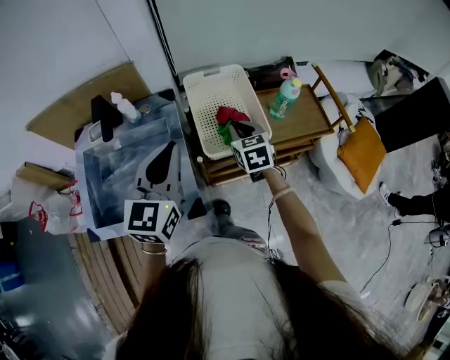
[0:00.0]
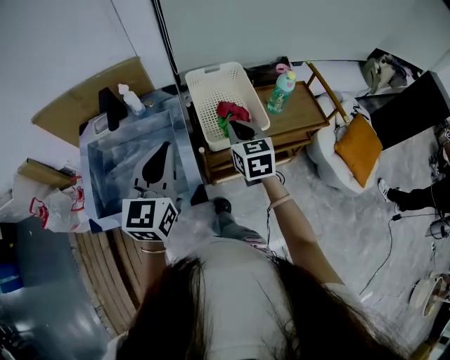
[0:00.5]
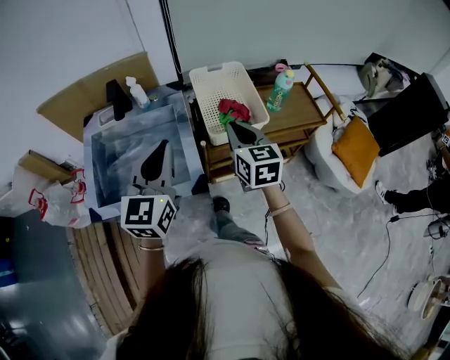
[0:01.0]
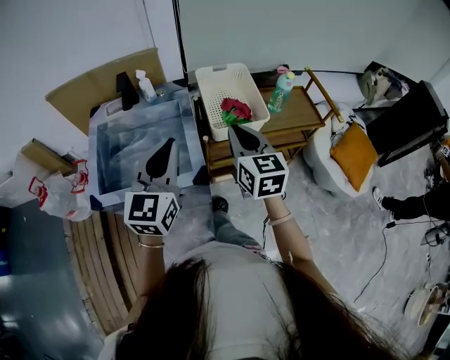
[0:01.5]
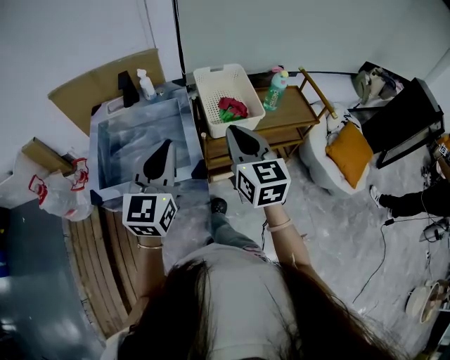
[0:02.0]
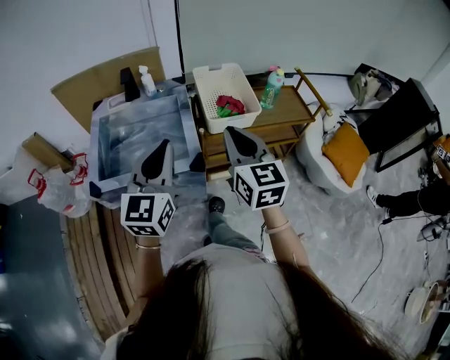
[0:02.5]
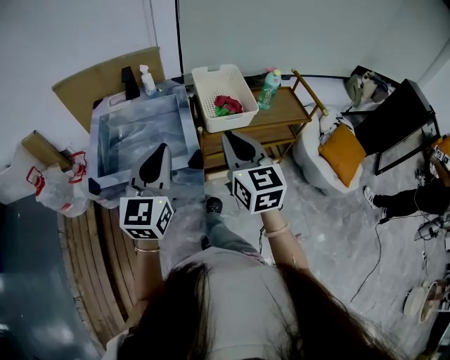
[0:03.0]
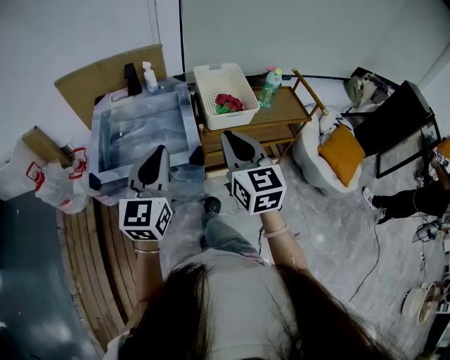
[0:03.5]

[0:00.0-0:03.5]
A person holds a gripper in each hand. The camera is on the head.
0:00.0 to 0:02.0: The left gripper travels backward by some 20 cm; the right gripper heads backward and upward, covering roughly 30 cm, and turns by some 30 degrees.
0:02.0 to 0:03.5: The grippers both shift backward by some 10 cm.

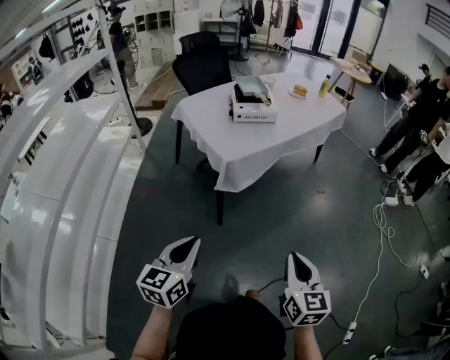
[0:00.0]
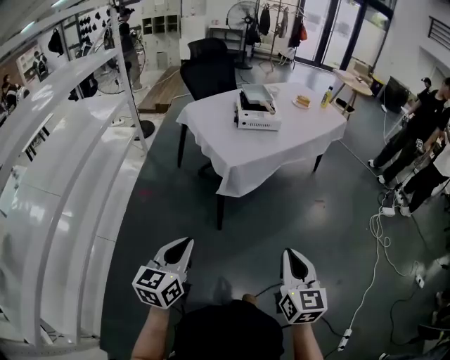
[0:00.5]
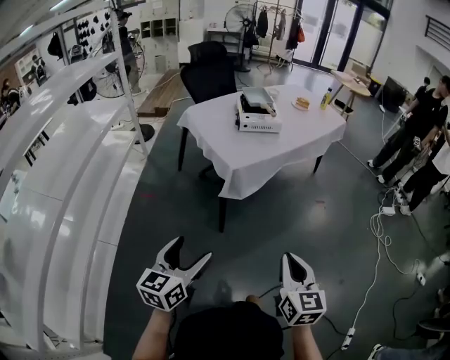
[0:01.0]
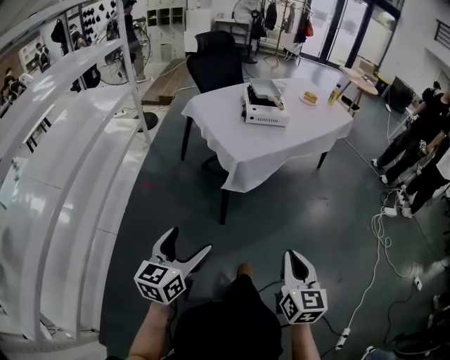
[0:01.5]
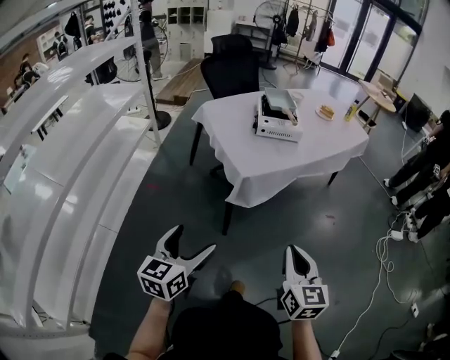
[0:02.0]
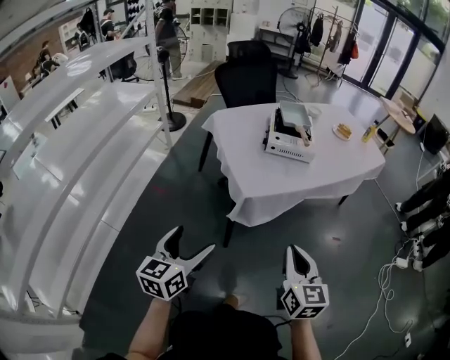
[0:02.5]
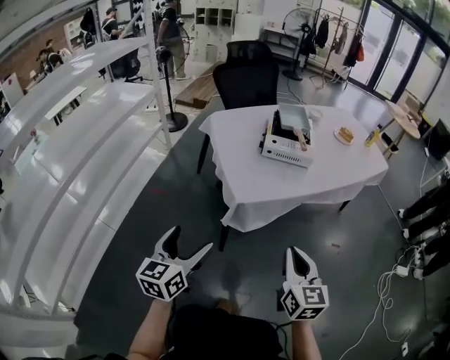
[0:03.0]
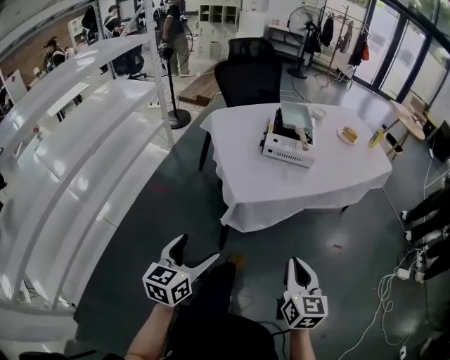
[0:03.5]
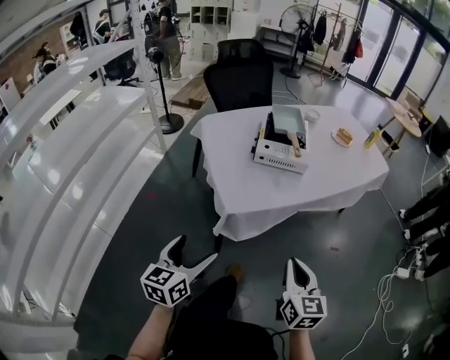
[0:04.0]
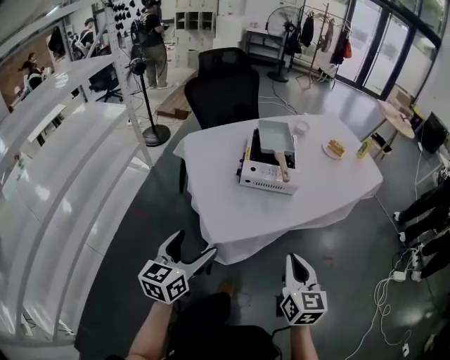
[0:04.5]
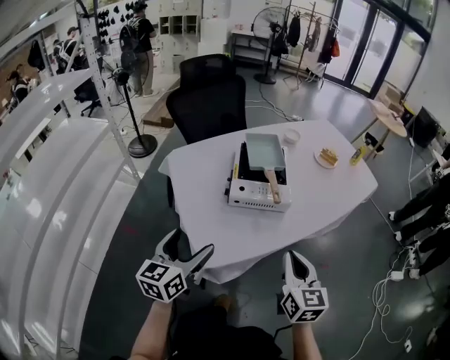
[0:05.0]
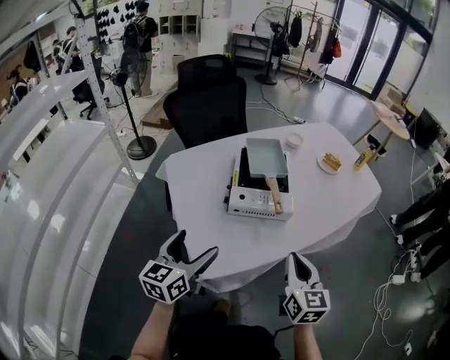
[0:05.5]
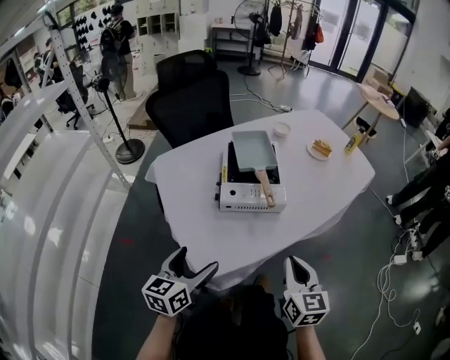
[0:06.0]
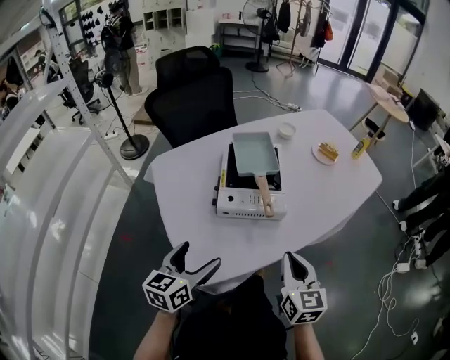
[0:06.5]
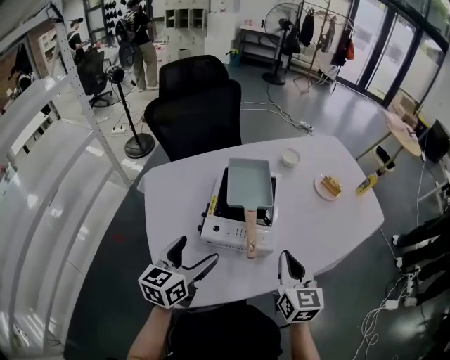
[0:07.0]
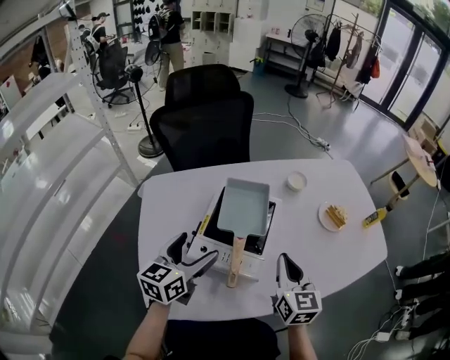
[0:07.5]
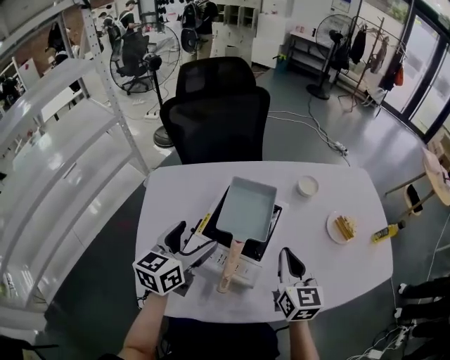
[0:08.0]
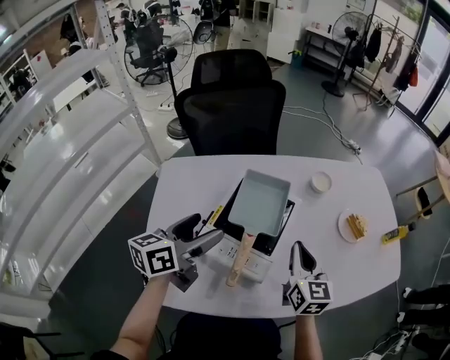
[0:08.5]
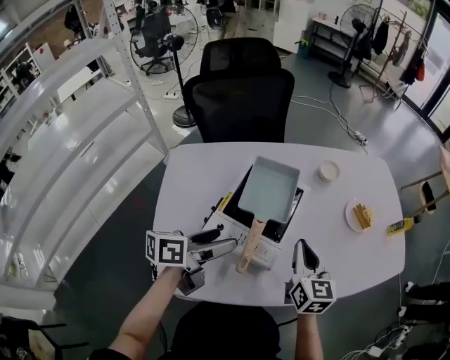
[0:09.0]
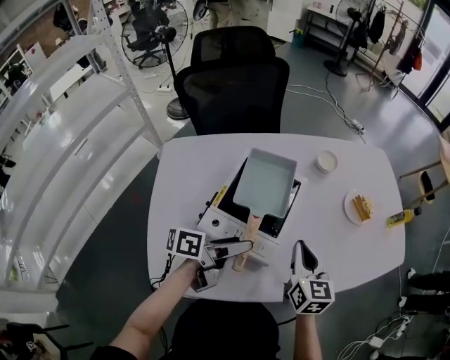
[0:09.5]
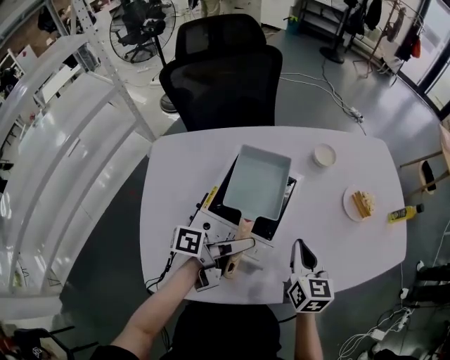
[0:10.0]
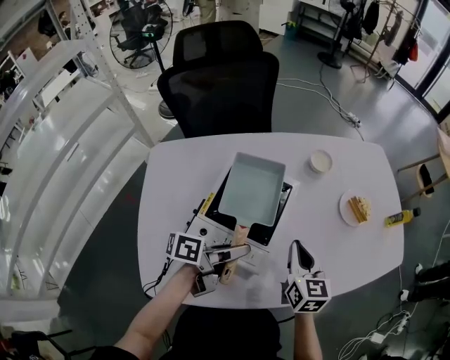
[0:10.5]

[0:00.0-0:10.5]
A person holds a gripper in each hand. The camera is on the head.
0:00.0 to 0:02.0: The right gripper is displaced forward and to the left by approximately 10 cm, while the left gripper shifts approximately 5 cm forward, and opens up.
0:02.0 to 0:04.0: Both grippers move forward and to the right, approximately 20 cm.
0:04.0 to 0:06.5: Both grippers travel together forward, approximately 30 cm.
0:06.5 to 0:08.5: The two grippers go approximately 25 cm forward. The right gripper rotates roughly 20 degrees. The left gripper swivels some 20 degrees.
0:08.5 to 0:10.5: The right gripper shifts some 5 cm downward. The left gripper goes roughly 15 cm to the right and downward, rotates about 50 degrees, and closes its fingers.

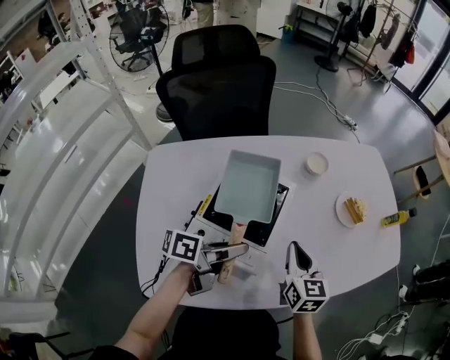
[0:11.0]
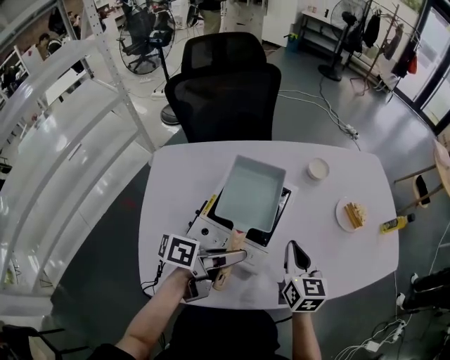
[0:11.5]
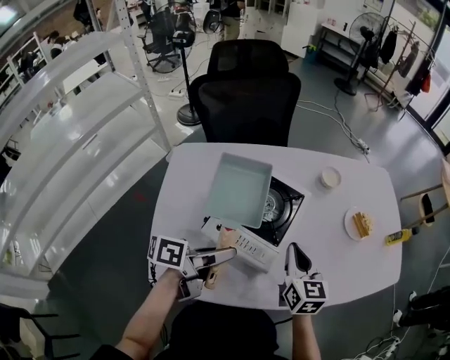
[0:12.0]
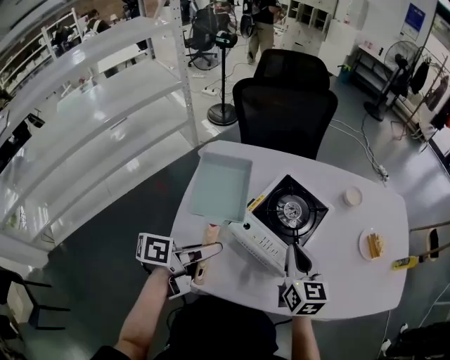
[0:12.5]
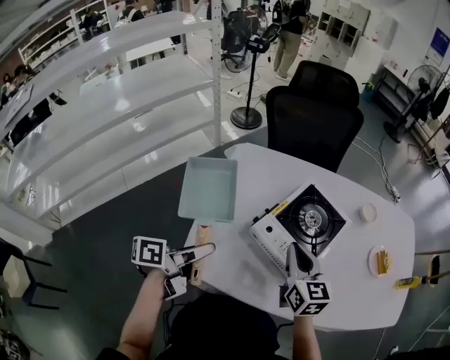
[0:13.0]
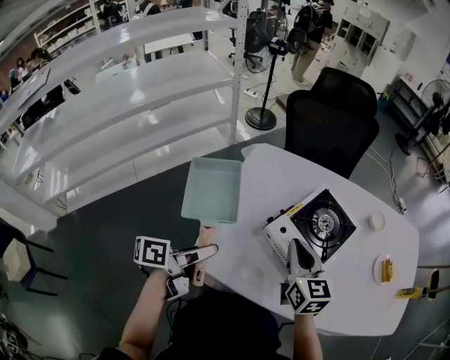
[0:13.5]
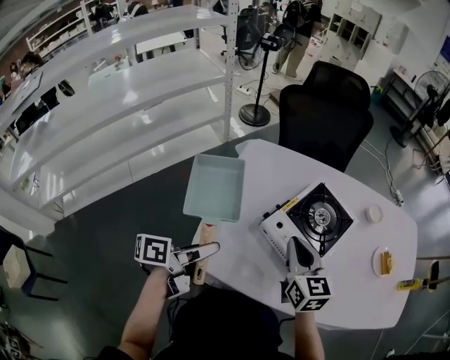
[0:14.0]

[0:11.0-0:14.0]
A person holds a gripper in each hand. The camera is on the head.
0:11.0 to 0:12.5: The right gripper moves to the left and backward, some 15 cm, while the left gripper goes about 20 cm backward and to the left, and swivels approximately 30 degrees.
0:12.5 to 0:14.0: The left gripper heads to the left and backward, covering some 10 cm. Meanwhile the right gripper is displaced to the left by roughly 10 cm.

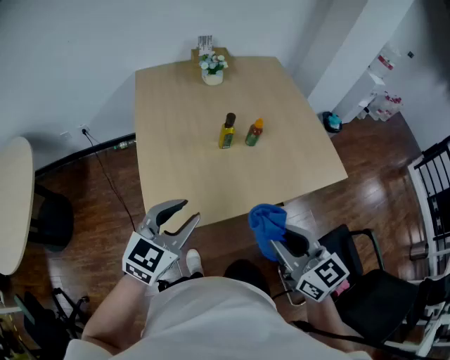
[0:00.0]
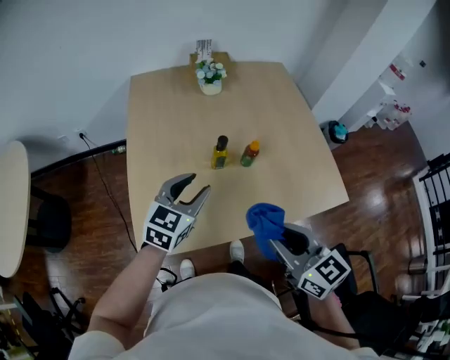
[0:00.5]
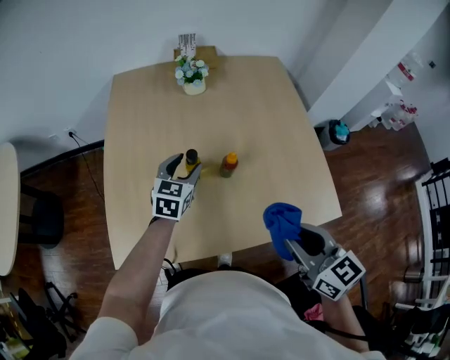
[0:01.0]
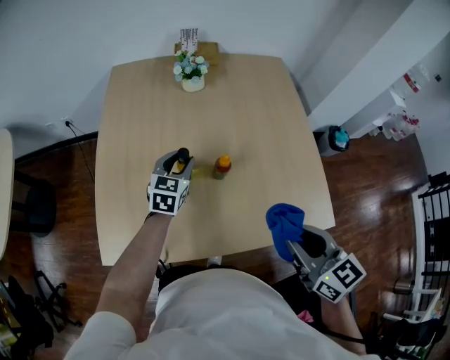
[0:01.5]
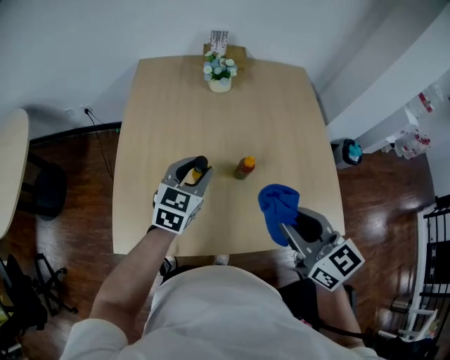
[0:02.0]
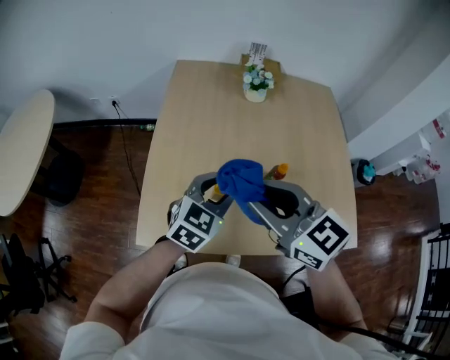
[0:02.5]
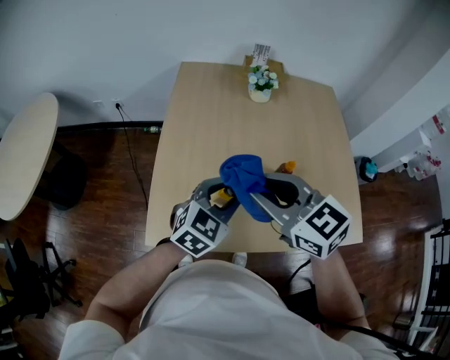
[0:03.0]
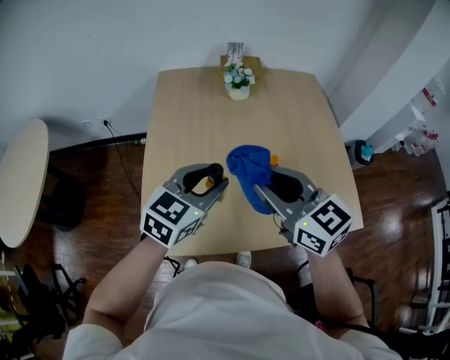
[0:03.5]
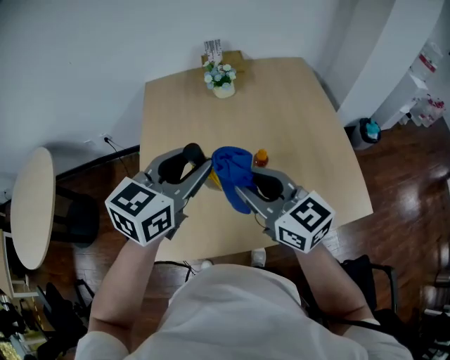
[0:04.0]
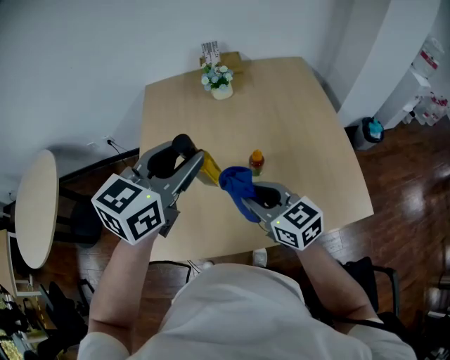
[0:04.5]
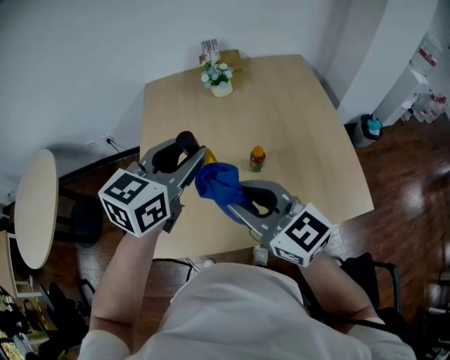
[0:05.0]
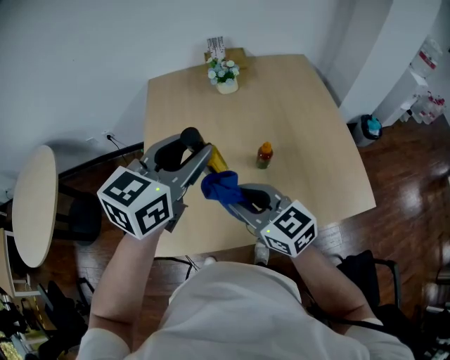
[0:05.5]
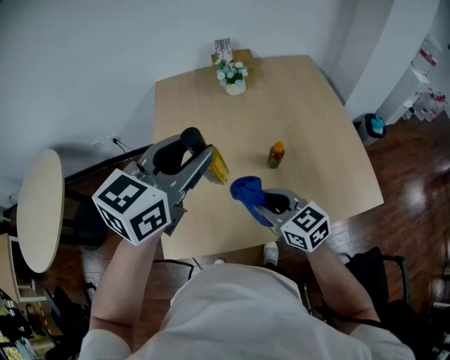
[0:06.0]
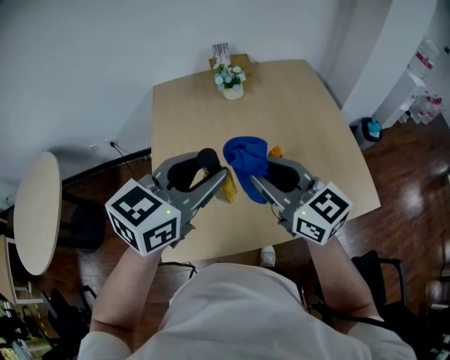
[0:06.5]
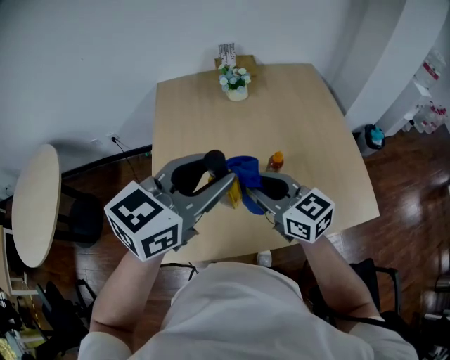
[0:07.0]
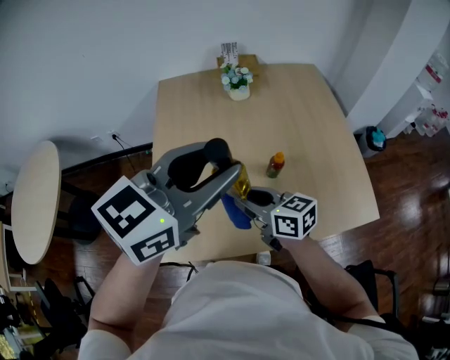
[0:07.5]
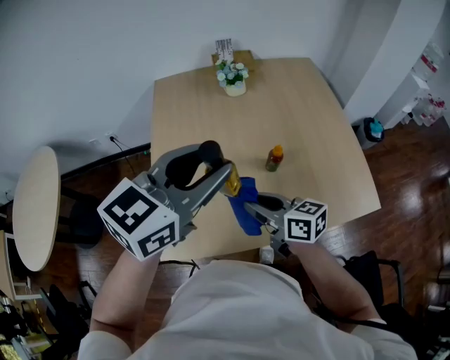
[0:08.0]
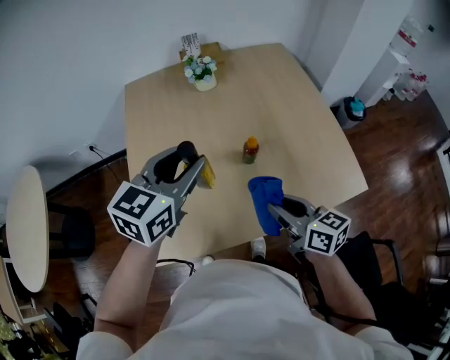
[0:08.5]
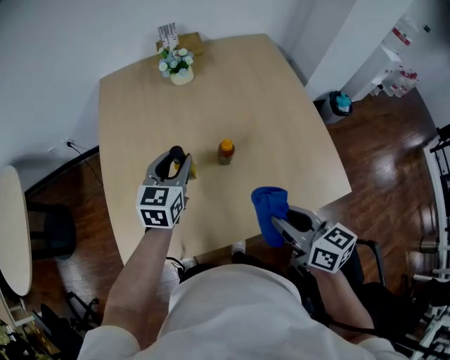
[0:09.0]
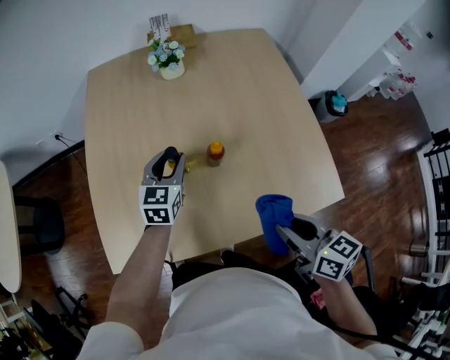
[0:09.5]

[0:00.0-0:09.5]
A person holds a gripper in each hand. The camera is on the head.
0:00.0 to 0:02.0: The two grippers go roughly 30 cm forward and to the right. The left gripper swivels about 20 degrees, and opens, then closes again.
0:02.0 to 0:04.0: The right gripper moves to the left and forward, about 15 cm. Meanwhile the left gripper moves upward, approximately 15 cm.
0:04.0 to 0:05.5: The right gripper moves up and down over roughly 10 cm, changing direction 2 times.
0:05.5 to 0:07.5: The right gripper moves up and down over about 15 cm, changing direction 2 times, and swivels some 20 degrees. Meanwhile the left gripper is displaced upward by roughly 5 cm.
0:07.5 to 0:09.5: The left gripper travels downward and forward by approximately 35 cm, and changes its angle by about 30 degrees; the right gripper is displaced to the right by approximately 25 cm, and swivels some 20 degrees.
